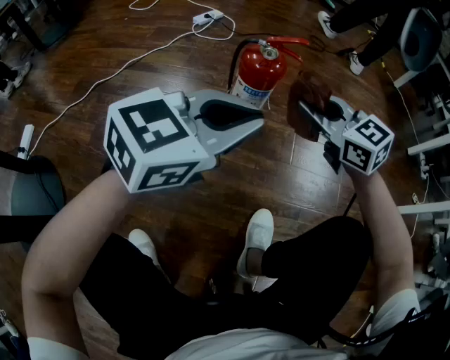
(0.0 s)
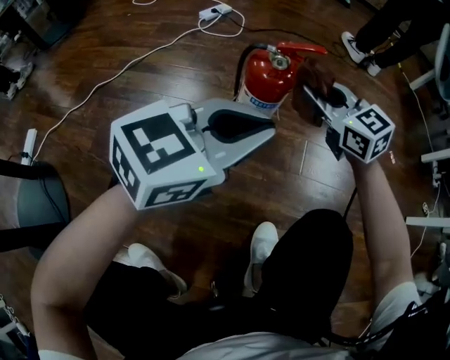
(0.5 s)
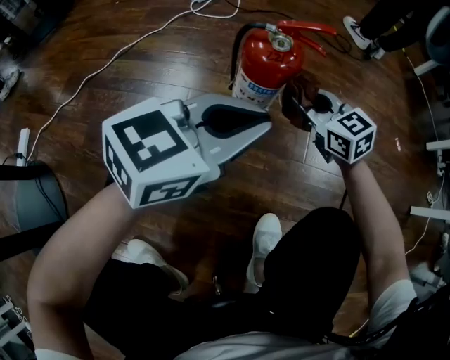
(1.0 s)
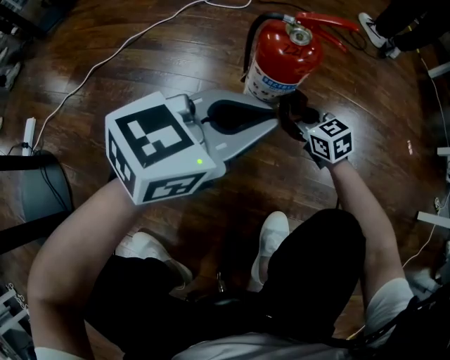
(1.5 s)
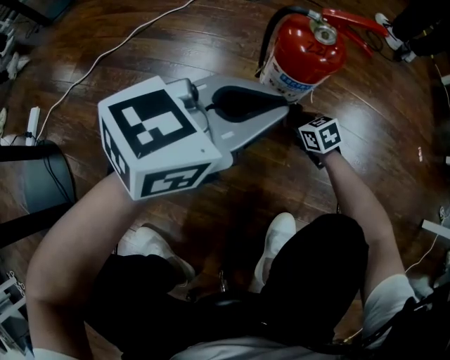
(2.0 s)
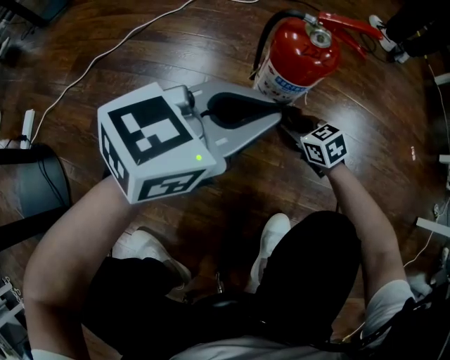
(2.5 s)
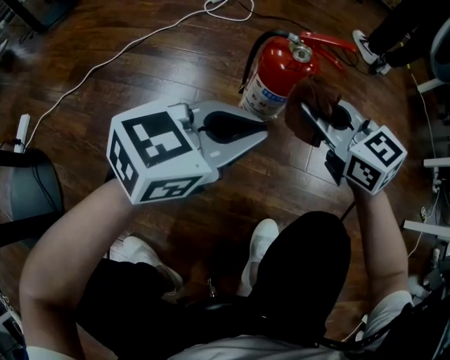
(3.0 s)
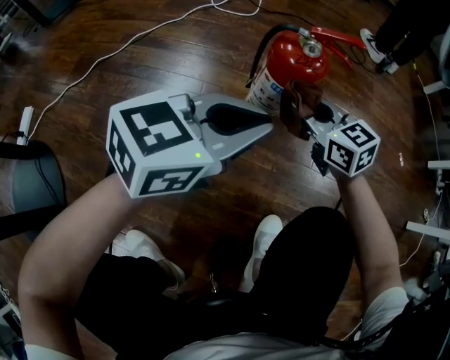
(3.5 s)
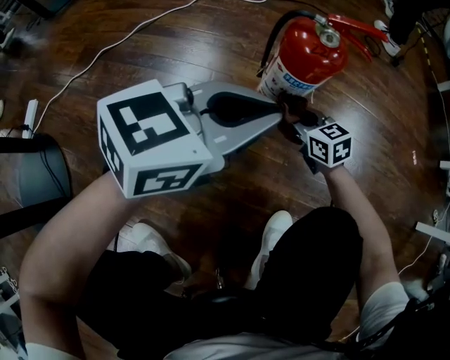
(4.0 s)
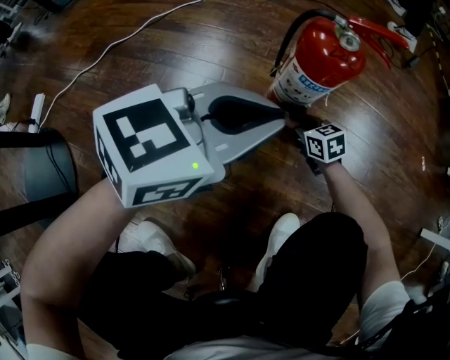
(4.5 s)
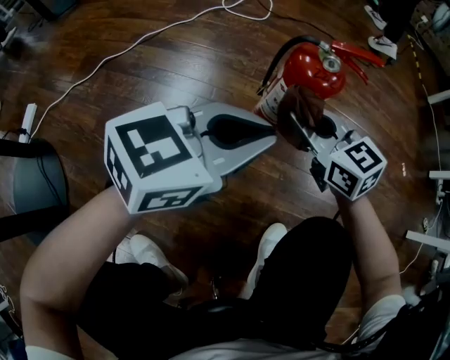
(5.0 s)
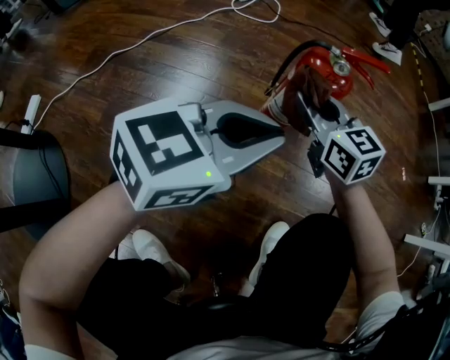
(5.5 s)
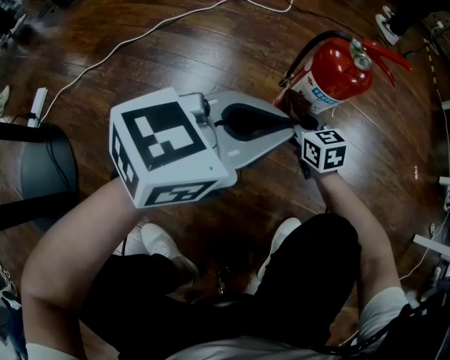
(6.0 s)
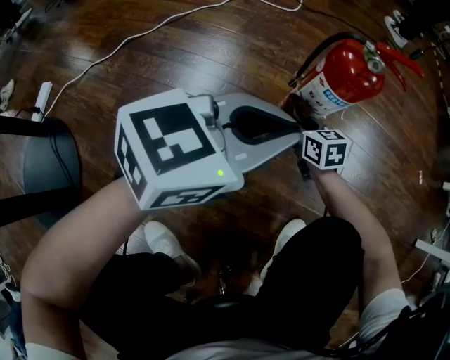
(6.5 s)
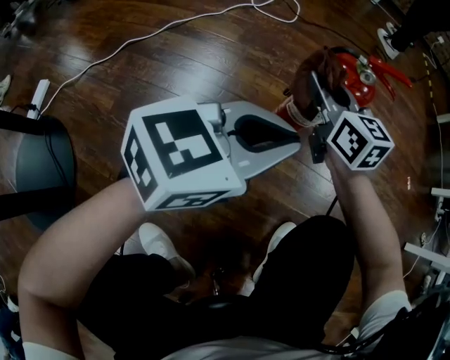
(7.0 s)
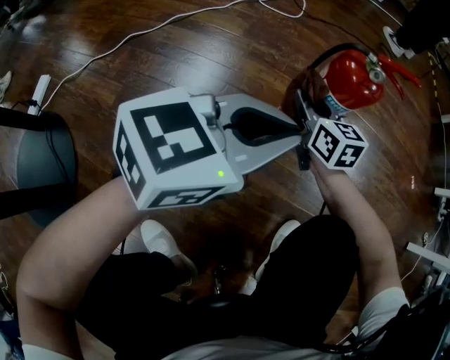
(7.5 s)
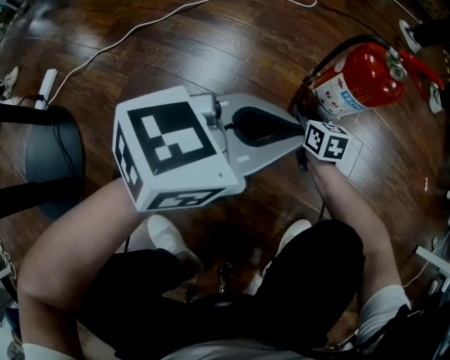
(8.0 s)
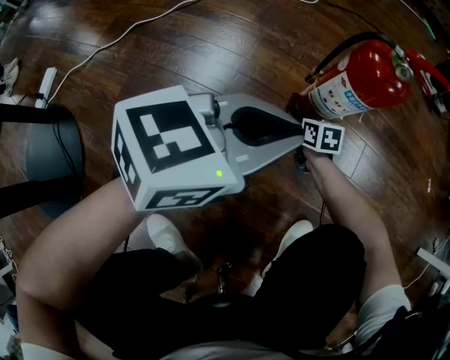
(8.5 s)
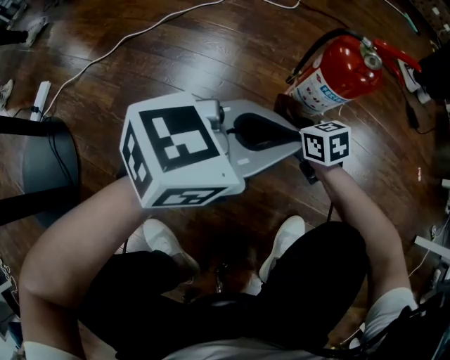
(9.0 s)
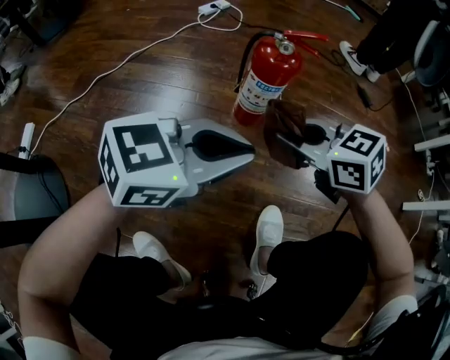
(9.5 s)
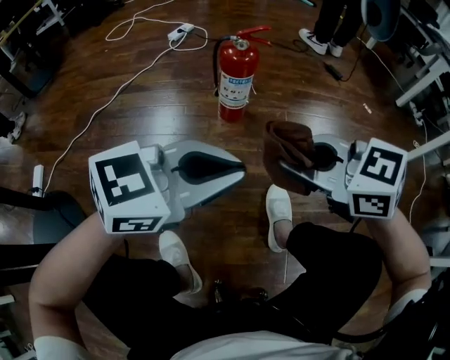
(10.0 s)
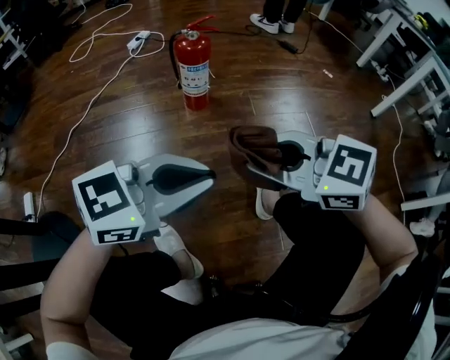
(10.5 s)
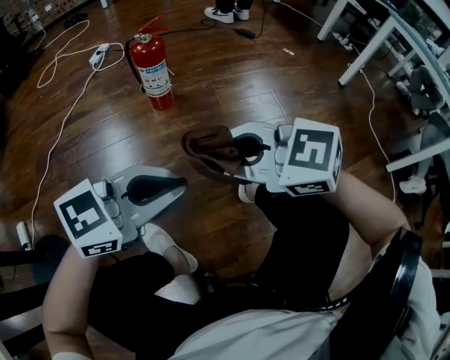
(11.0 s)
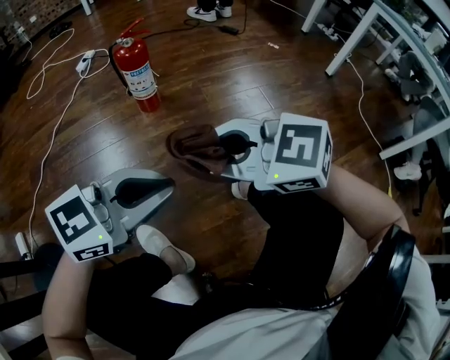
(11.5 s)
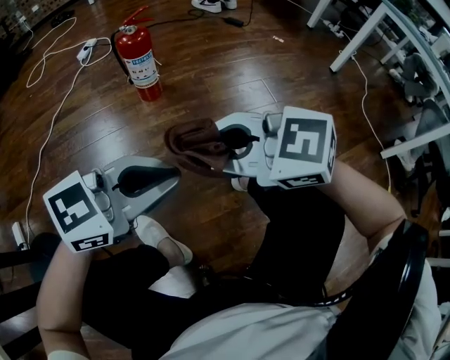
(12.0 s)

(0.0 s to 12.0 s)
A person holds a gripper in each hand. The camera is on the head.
0.0 s - 2.0 s: The right gripper is displaced downward by approximately 35 cm, and points its fingers some 30 degrees further downward. The left gripper travels forward and downward by some 10 cm.
2.0 s - 4.0 s: The right gripper goes upward and returns, approximately 35 cm each way.
4.0 s - 6.0 s: The right gripper moves up and down over approximately 25 cm, changing direction 2 times.
6.0 s - 8.0 s: The right gripper moves roughly 20 cm upward and comes back.
8.0 s - 10.0 s: The right gripper shifts some 35 cm upward, and swivels some 30 degrees. Meanwhile the left gripper ends up some 25 cm from where it was, and swivels approximately 30 degrees.
10.0 s - 12.0 s: The left gripper shifts by about 15 cm; the right gripper moves roughly 15 cm.

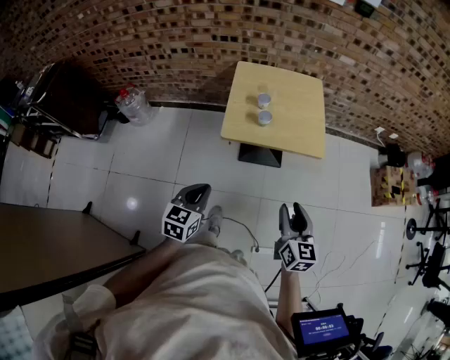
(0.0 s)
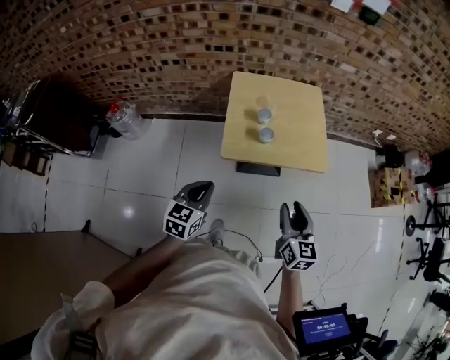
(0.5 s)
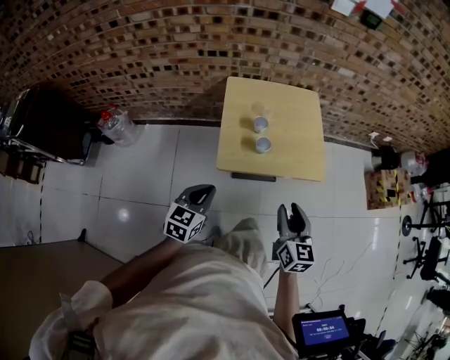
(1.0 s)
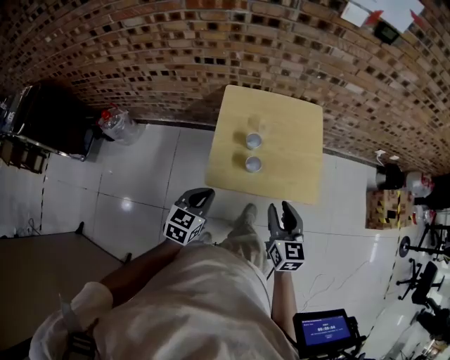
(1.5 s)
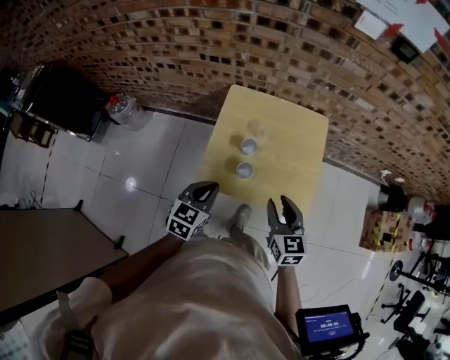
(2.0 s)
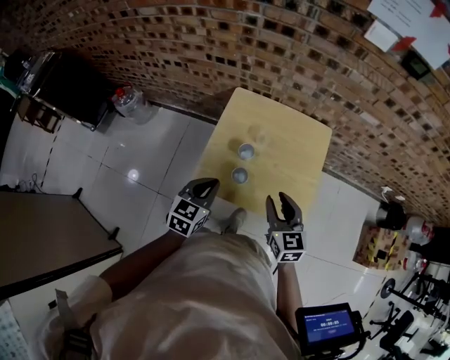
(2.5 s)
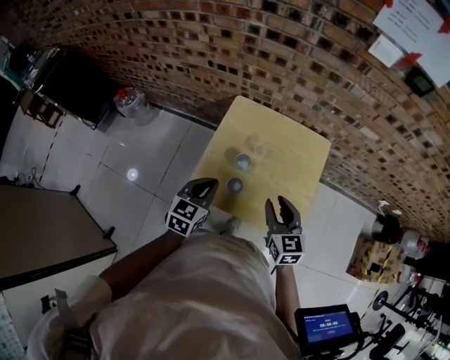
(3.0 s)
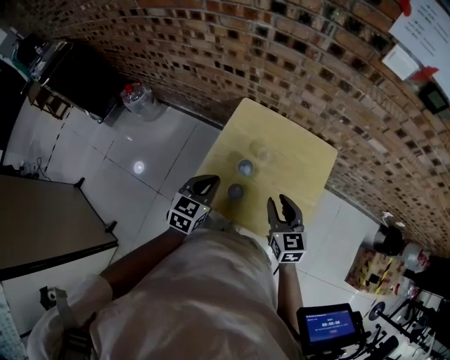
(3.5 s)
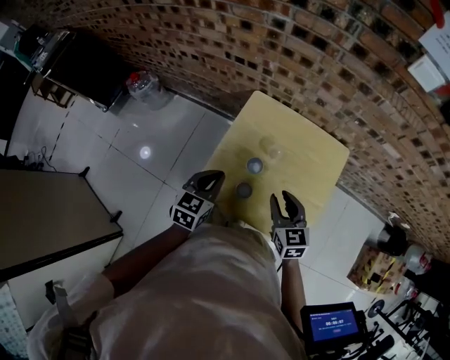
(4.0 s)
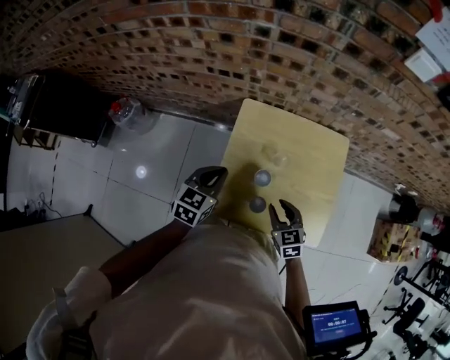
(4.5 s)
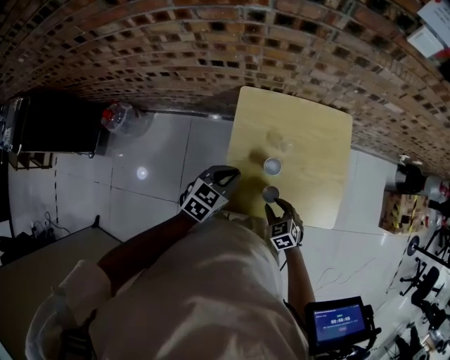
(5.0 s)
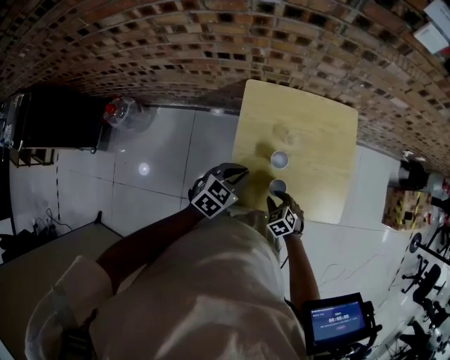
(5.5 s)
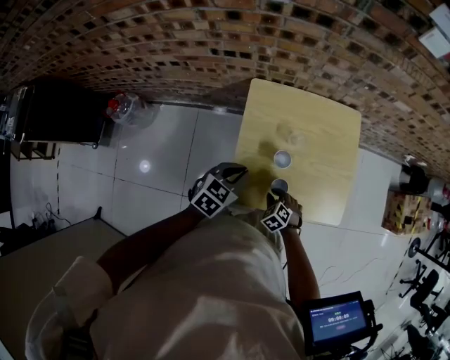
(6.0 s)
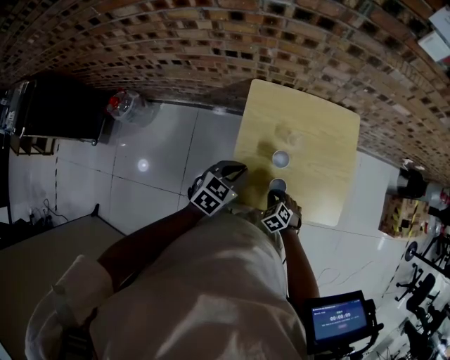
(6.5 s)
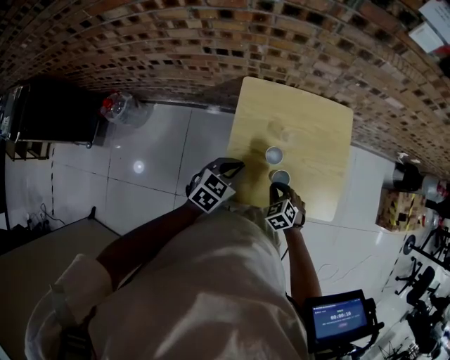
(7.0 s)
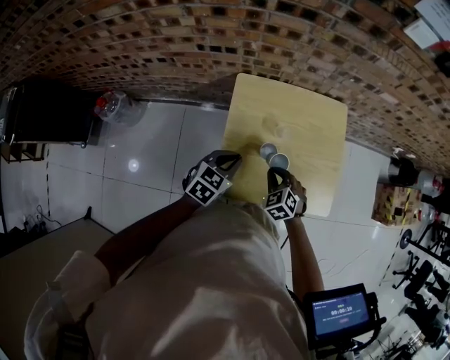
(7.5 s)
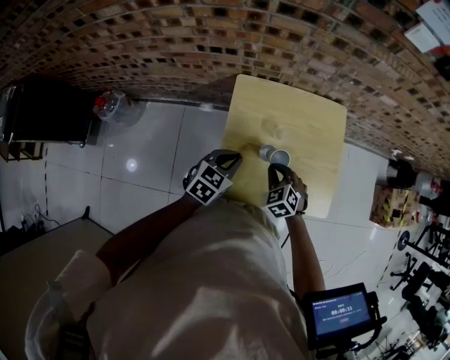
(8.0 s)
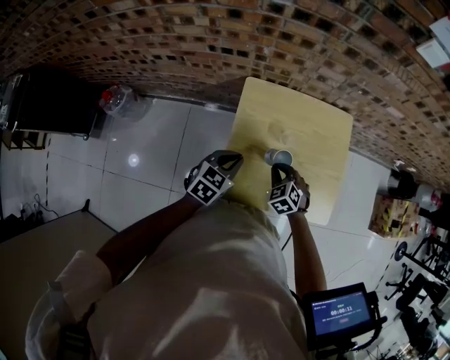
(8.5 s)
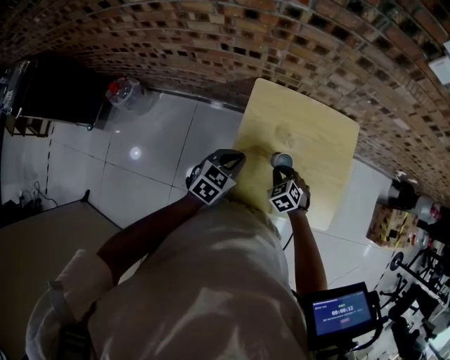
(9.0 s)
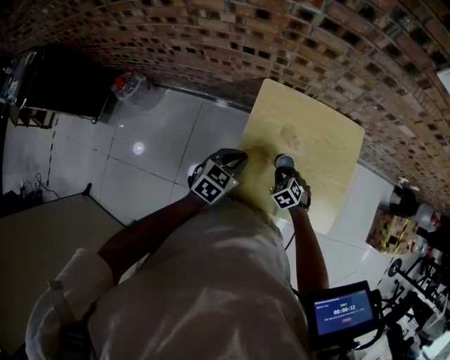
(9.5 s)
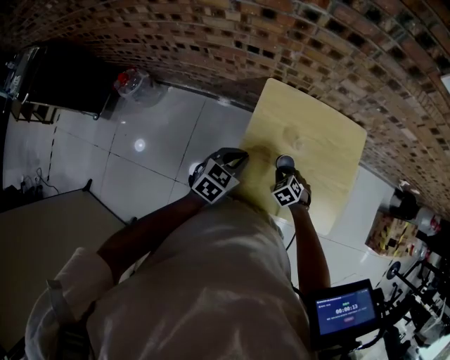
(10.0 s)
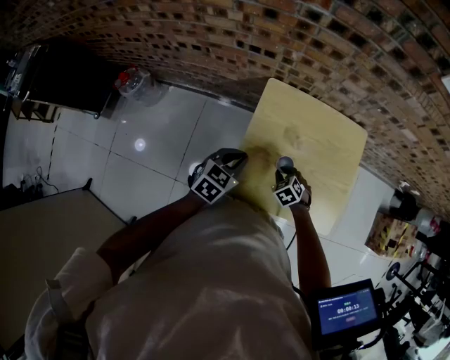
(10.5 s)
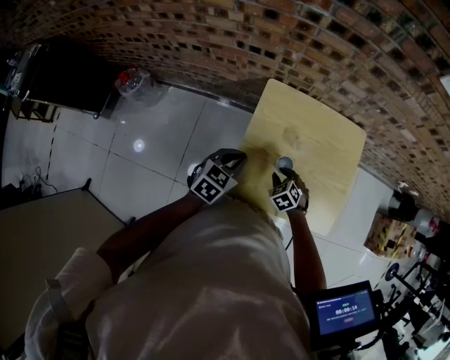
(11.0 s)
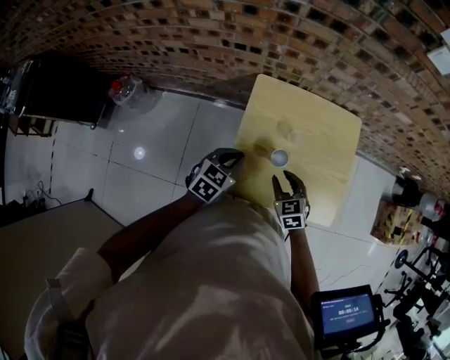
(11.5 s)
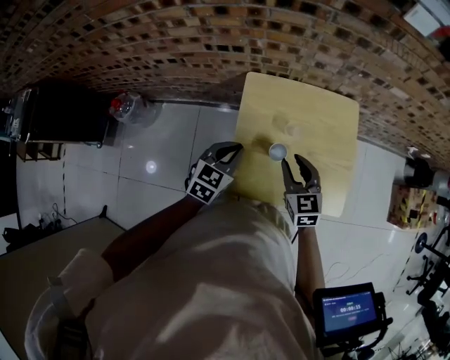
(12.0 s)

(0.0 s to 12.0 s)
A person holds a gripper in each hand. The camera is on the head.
0.0 s - 2.0 s: The grippers both shift forward by approximately 35 cm. The right gripper swivels some 20 degrees.
2.0 s - 4.0 s: Both grippers move forward, about 15 cm.
4.0 s - 6.0 s: The right gripper is displaced downward and to the left by approximately 25 cm, and angles its fingers downward, by approximately 40 degrees, while the left gripper heads downward and to the left, covering roughly 10 cm, and swivels approximately 30 degrees.
6.0 s - 8.0 s: The right gripper is displaced upward and forward by approximately 15 cm.
8.0 s - 10.0 s: The right gripper shifts roughly 10 cm downward.
10.0 s - 12.0 s: The right gripper shifts roughly 20 cm upward, angles its fingers upward, by roughly 40 degrees, and opens up.

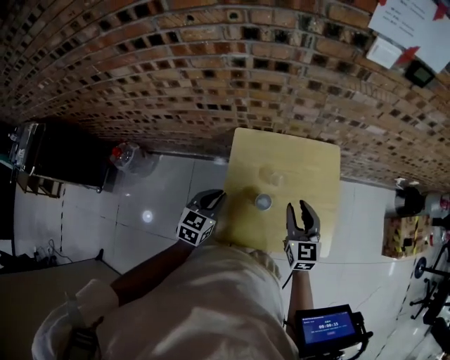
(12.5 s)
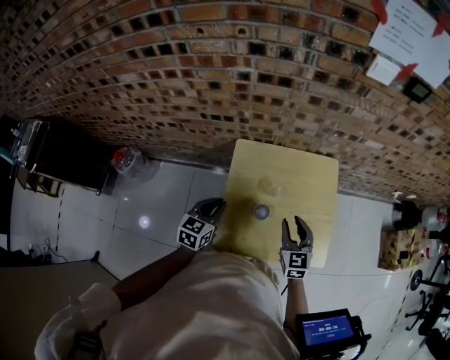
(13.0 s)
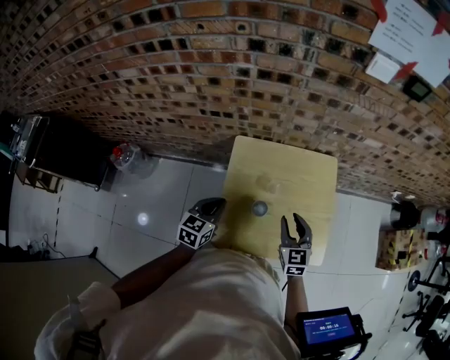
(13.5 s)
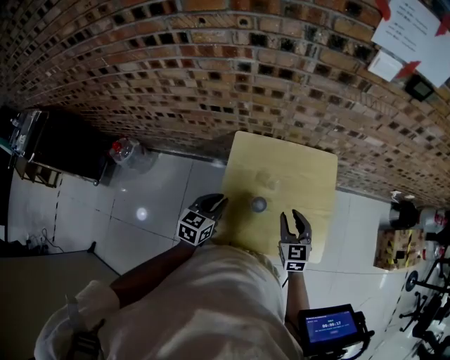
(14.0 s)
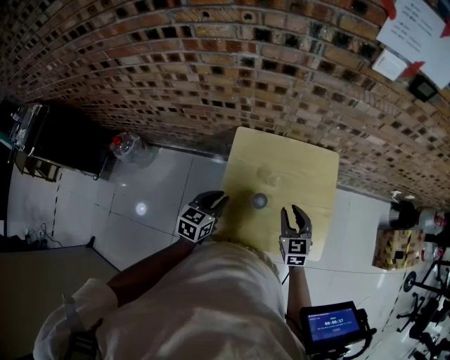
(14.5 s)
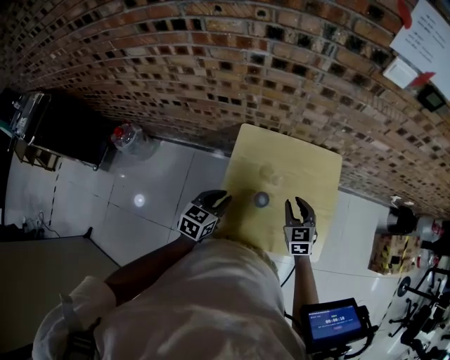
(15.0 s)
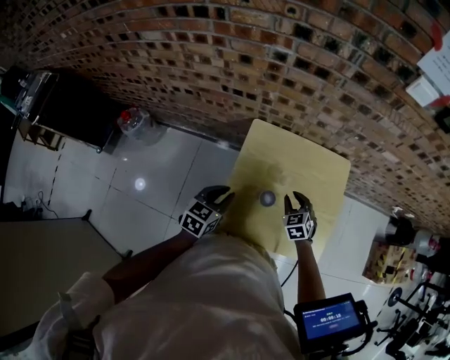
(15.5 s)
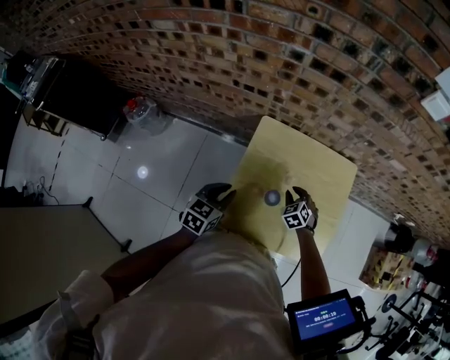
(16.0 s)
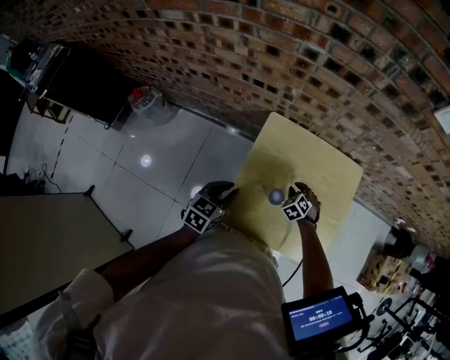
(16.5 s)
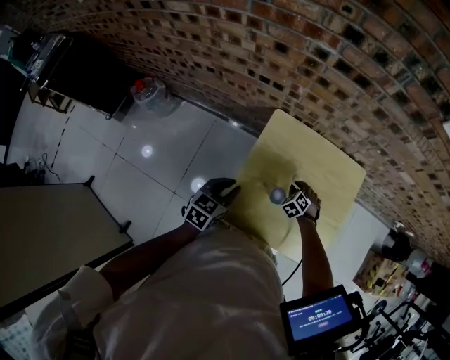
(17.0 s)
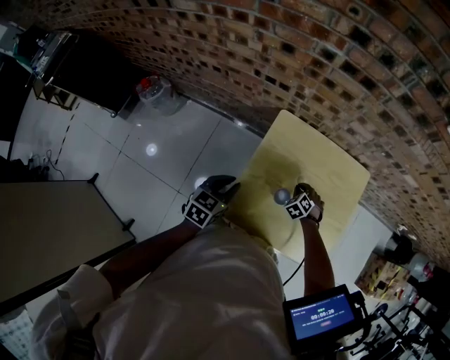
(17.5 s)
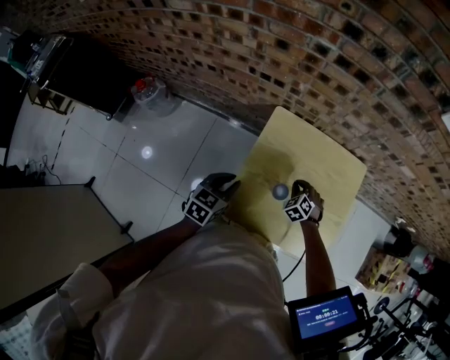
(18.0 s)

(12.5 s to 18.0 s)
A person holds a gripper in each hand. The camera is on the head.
12.5 s - 14.5 s: The right gripper is displaced downward by about 5 cm.
14.5 s - 16.0 s: The right gripper goes some 20 cm downward and forward, and rotates some 40 degrees.
